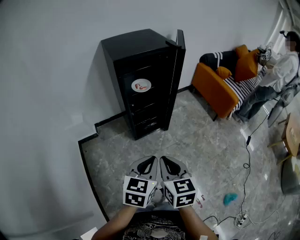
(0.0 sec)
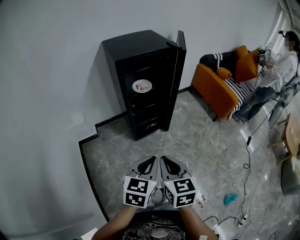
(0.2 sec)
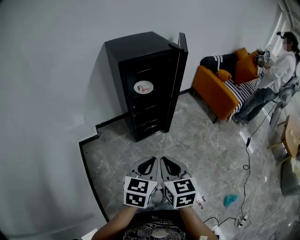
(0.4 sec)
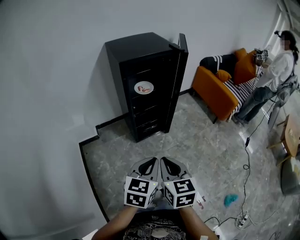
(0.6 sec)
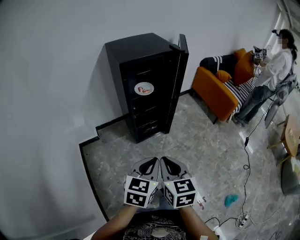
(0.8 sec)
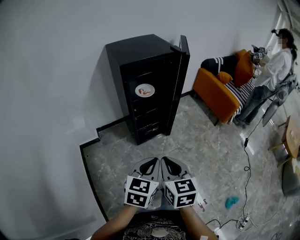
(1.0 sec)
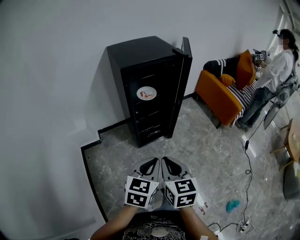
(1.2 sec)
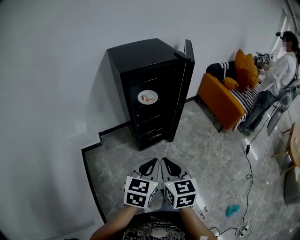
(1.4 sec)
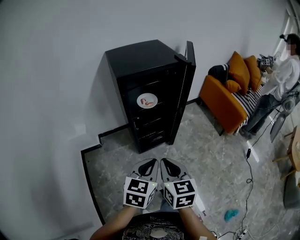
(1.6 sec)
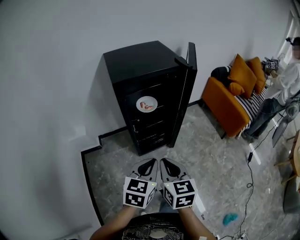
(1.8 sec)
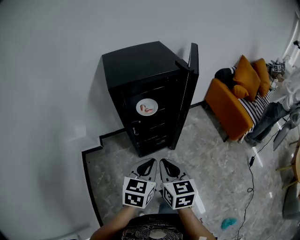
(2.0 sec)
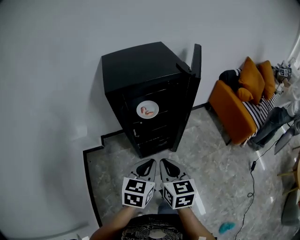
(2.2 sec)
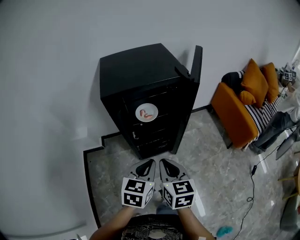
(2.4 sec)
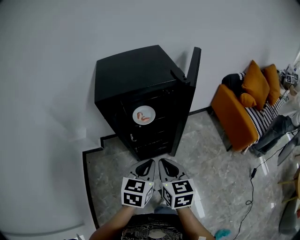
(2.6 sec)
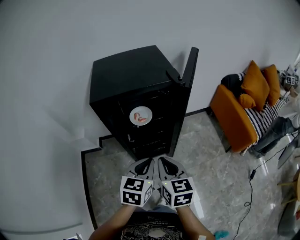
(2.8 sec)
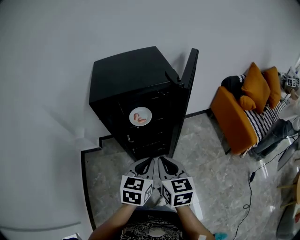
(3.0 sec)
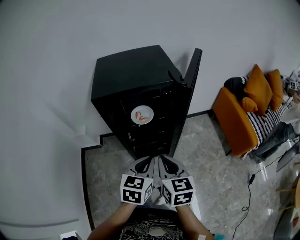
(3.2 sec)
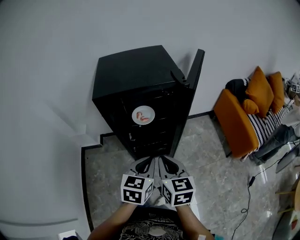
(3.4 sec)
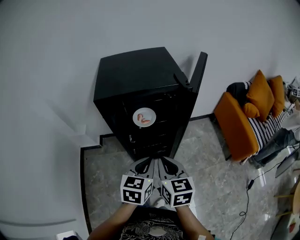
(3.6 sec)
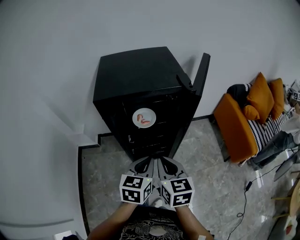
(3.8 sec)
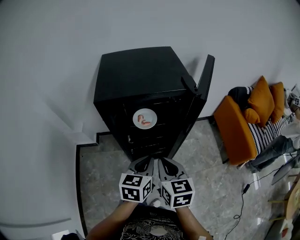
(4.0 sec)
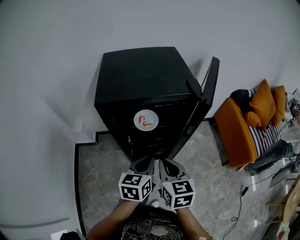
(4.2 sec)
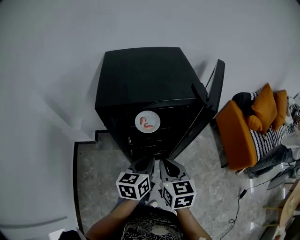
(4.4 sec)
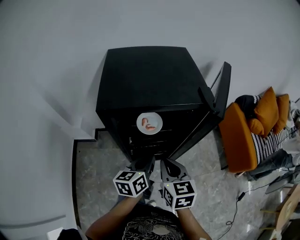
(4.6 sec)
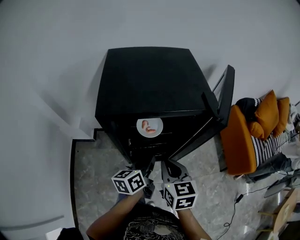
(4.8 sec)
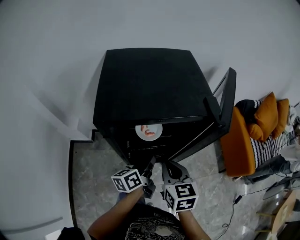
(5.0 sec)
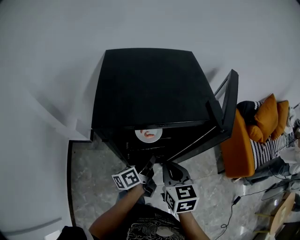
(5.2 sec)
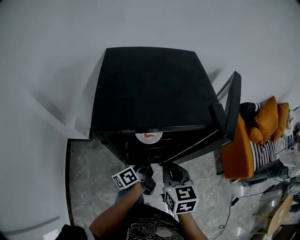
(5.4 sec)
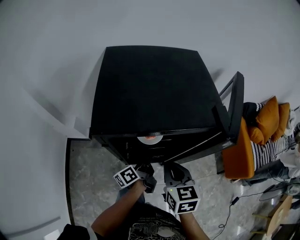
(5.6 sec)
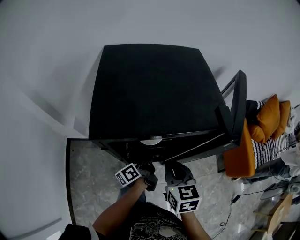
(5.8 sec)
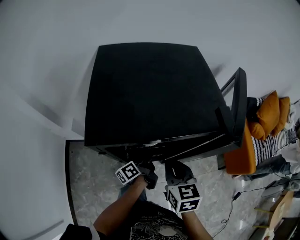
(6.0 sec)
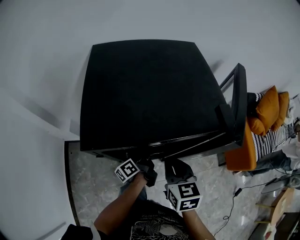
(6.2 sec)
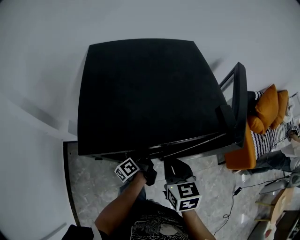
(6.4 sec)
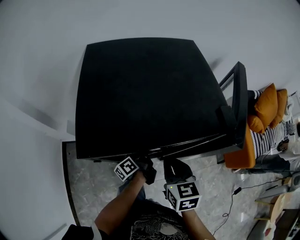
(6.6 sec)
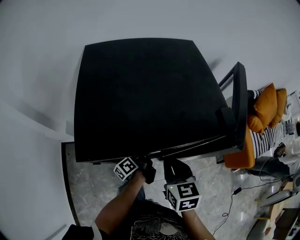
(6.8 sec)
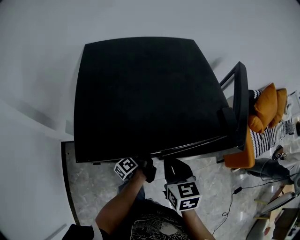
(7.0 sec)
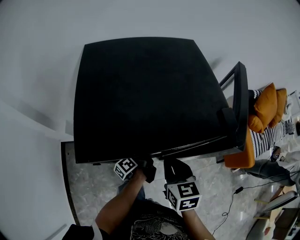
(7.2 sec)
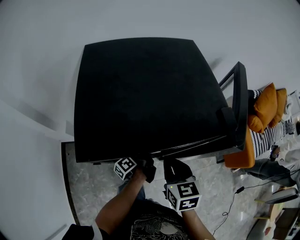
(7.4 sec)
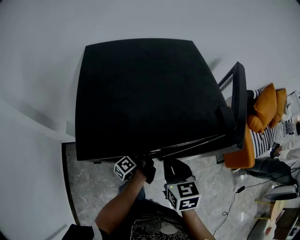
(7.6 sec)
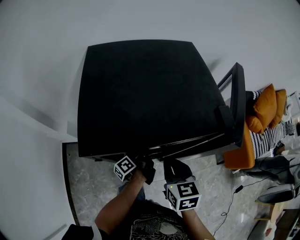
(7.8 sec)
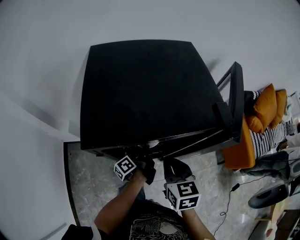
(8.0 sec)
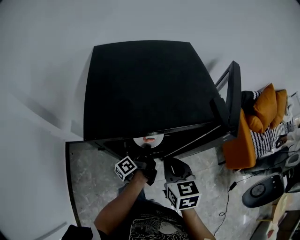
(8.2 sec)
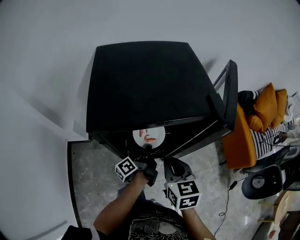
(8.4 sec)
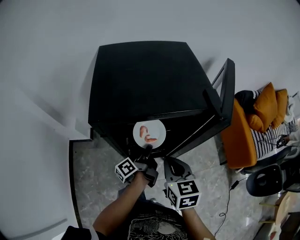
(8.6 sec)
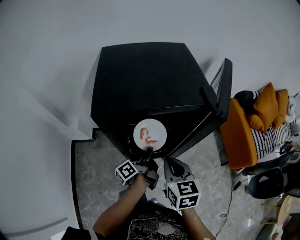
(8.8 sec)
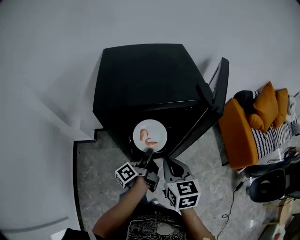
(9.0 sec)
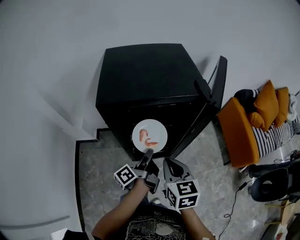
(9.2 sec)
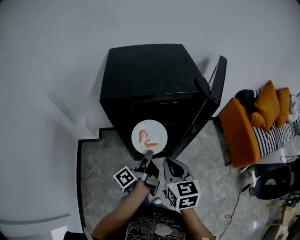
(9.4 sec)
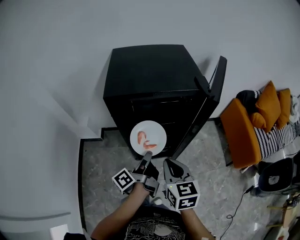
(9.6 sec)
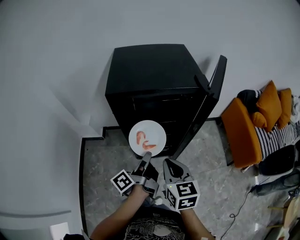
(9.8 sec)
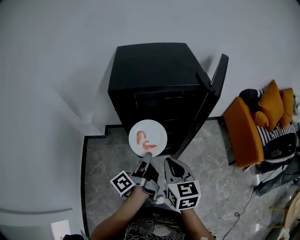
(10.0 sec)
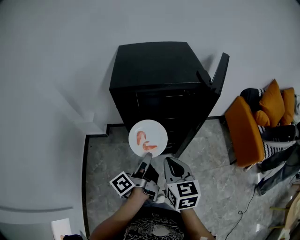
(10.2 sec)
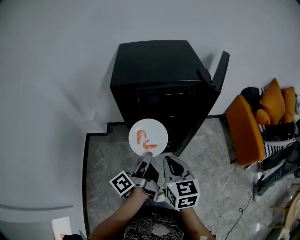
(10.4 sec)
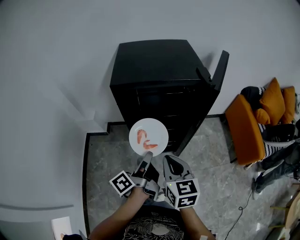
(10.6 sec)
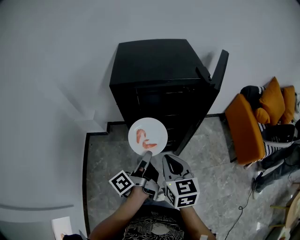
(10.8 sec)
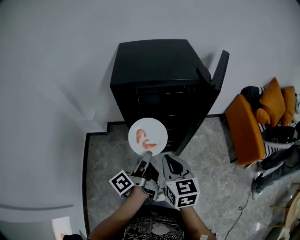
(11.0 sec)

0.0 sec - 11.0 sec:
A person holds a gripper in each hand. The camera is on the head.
0.0 sec - 1.6 sec: Both grippers move forward, roughly 10 cm.
1.6 sec - 3.2 sec: The grippers both shift forward and to the right by roughly 20 cm.
3.2 sec - 4.8 sec: The left gripper shifts approximately 15 cm forward and downward, and rolls counterclockwise, seen from behind, by some 40 degrees. The right gripper is displaced forward by some 15 cm.
4.8 sec - 6.2 sec: The right gripper travels forward by approximately 10 cm; the left gripper heads downward and forward, covering approximately 20 cm, and rotates some 40 degrees.
6.2 sec - 7.8 sec: The grippers move only a little.
7.8 sec - 9.4 sec: The right gripper is displaced backward by approximately 15 cm, while the left gripper heads backward and upward, covering approximately 25 cm.
9.4 sec - 11.0 sec: The left gripper travels backward by about 10 cm, while the right gripper goes some 5 cm backward.

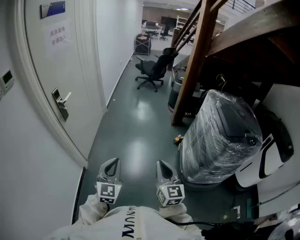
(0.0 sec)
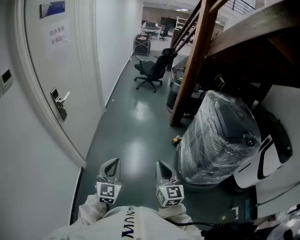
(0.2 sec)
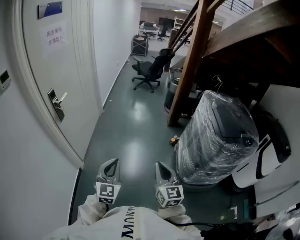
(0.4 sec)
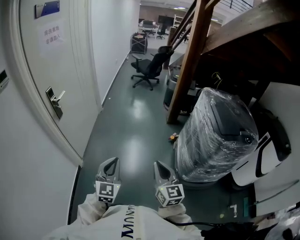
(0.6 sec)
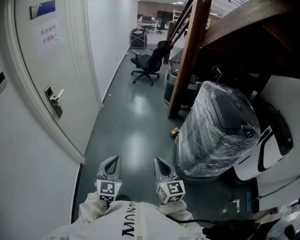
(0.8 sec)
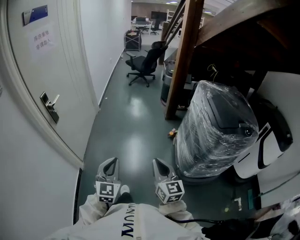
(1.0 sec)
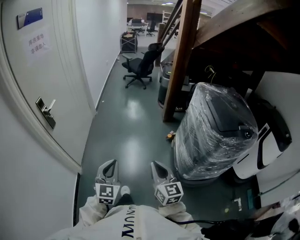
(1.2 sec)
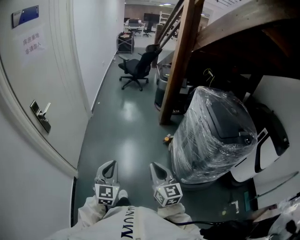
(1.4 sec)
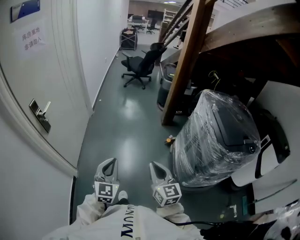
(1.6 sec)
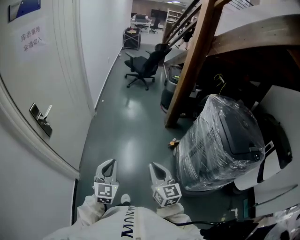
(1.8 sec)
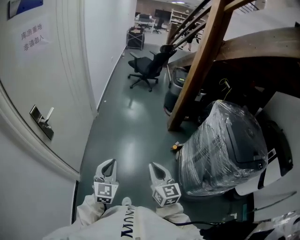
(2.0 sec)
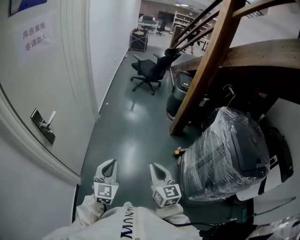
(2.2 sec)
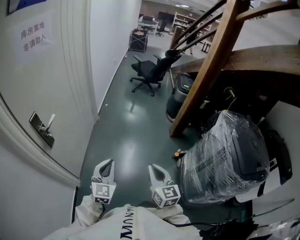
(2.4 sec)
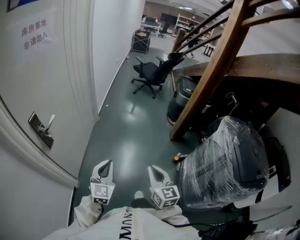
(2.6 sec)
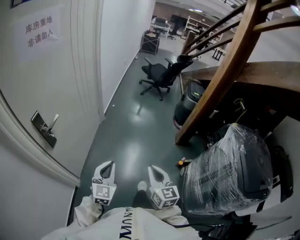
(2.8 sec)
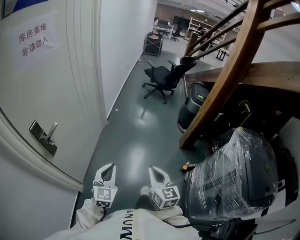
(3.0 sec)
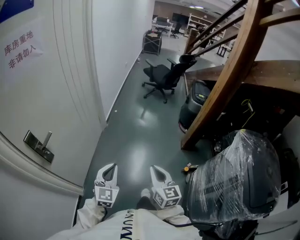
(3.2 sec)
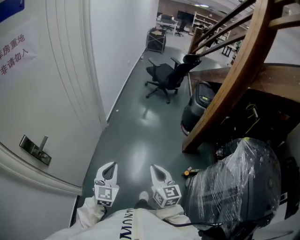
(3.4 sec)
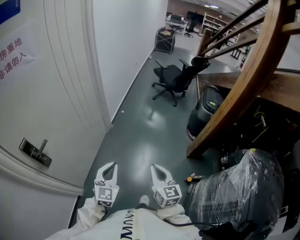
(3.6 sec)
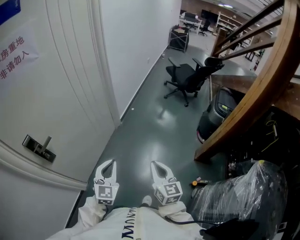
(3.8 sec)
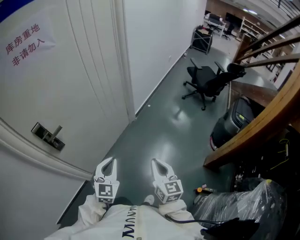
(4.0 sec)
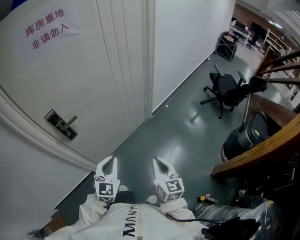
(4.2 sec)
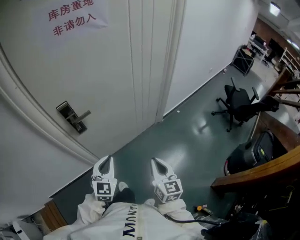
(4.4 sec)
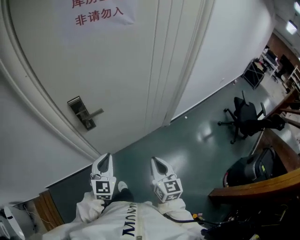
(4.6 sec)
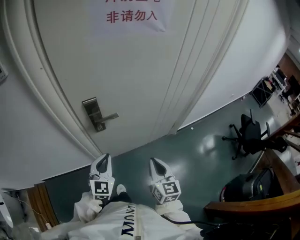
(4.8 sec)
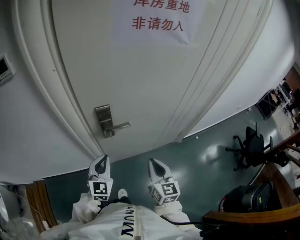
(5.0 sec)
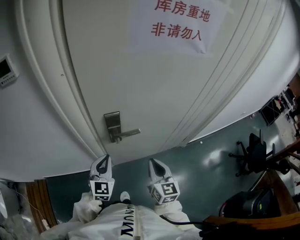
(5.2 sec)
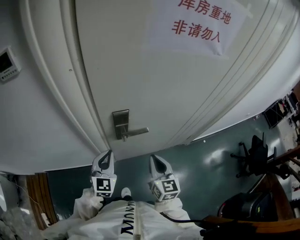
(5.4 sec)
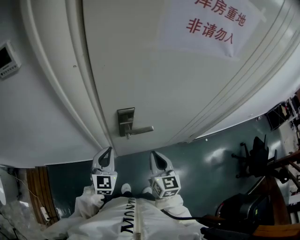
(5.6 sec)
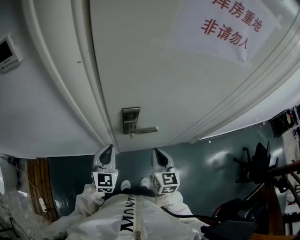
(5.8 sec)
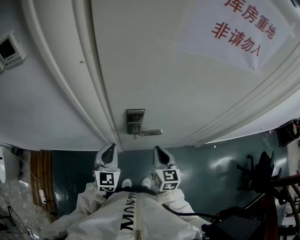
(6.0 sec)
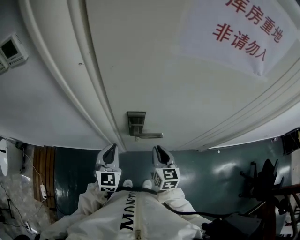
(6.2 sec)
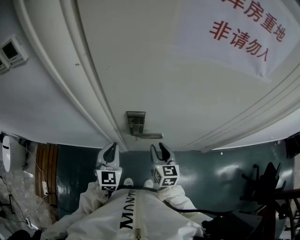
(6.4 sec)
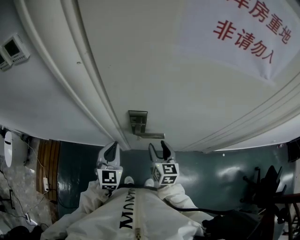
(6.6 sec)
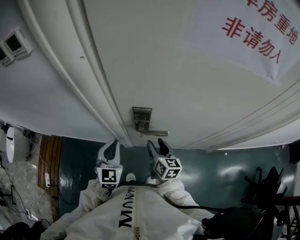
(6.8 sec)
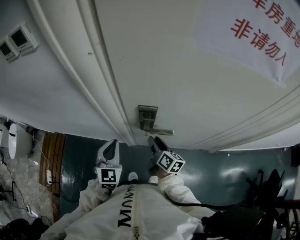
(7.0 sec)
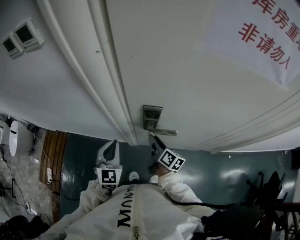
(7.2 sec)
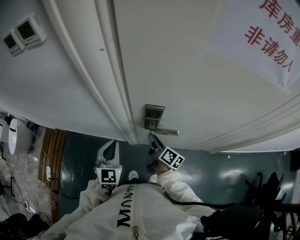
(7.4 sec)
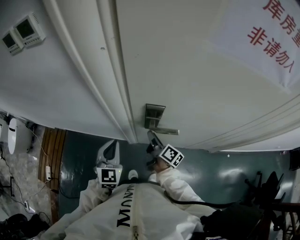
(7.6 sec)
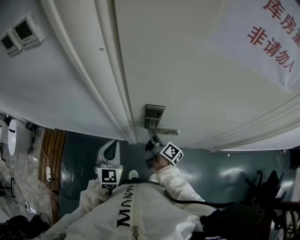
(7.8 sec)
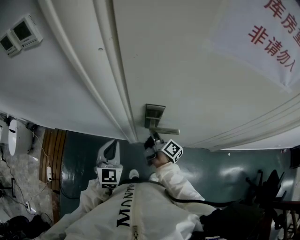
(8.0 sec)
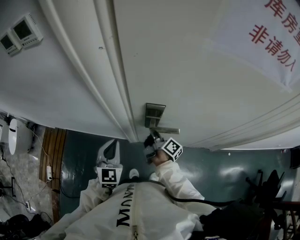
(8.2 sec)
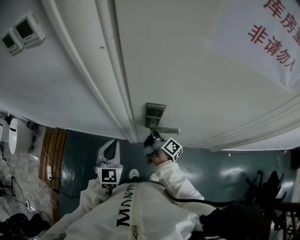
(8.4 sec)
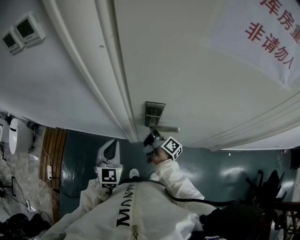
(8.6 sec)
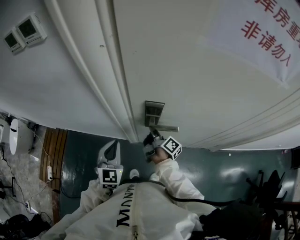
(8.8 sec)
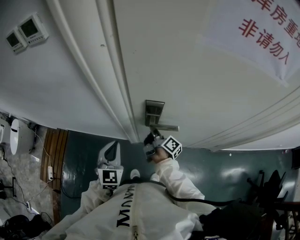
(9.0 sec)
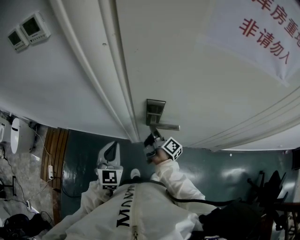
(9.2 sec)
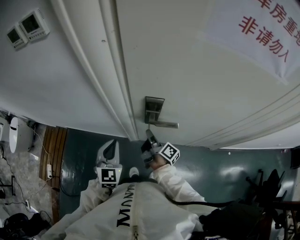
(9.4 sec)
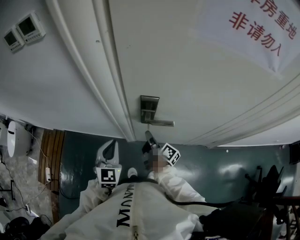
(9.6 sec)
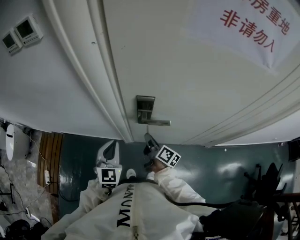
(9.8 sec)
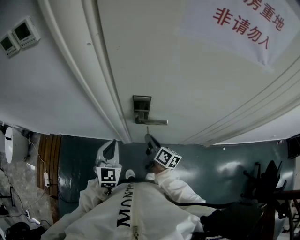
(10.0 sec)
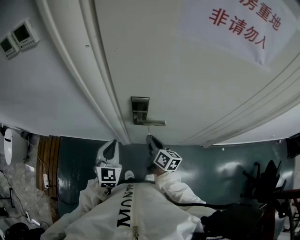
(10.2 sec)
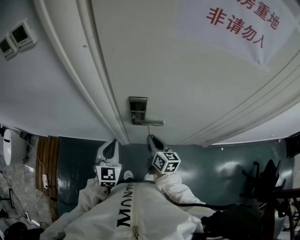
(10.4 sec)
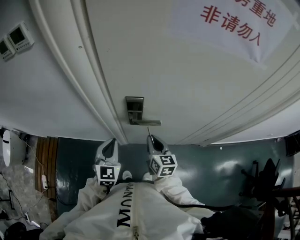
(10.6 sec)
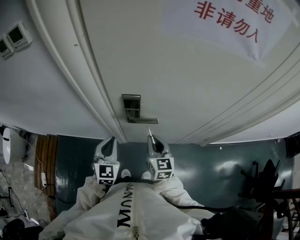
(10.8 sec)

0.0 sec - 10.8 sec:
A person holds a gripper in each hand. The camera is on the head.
0.0 sec - 1.6 sec: The two grippers go roughly 10 cm forward.
1.6 sec - 3.0 sec: The left gripper heads forward and to the left, covering about 25 cm. The right gripper heads forward, covering some 30 cm.
3.0 sec - 4.6 sec: The left gripper ends up approximately 20 cm from where it was, and changes its angle by approximately 50 degrees. The right gripper changes place by about 30 cm, and rotates about 50 degrees.
4.6 sec - 6.2 sec: The left gripper changes place by some 25 cm, and rotates some 30 degrees. Meanwhile the right gripper moves about 30 cm, and swivels about 30 degrees.
6.2 sec - 7.8 sec: The right gripper goes some 10 cm forward, to the left and downward, twists about 60 degrees clockwise, seen from behind, and opens, then closes once more; the left gripper goes some 5 cm to the left.
7.8 sec - 9.2 sec: The right gripper closes.
9.2 sec - 10.8 sec: The right gripper heads backward, upward and to the right, covering roughly 15 cm, and twists about 80 degrees counterclockwise, seen from behind, while the left gripper is displaced to the right by about 5 cm.

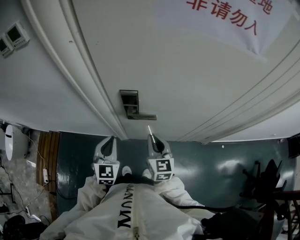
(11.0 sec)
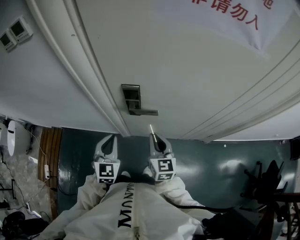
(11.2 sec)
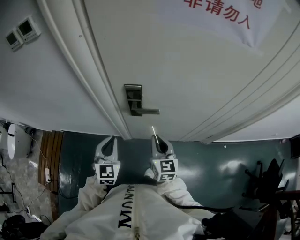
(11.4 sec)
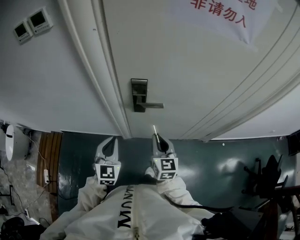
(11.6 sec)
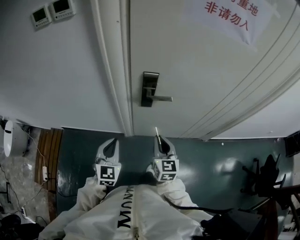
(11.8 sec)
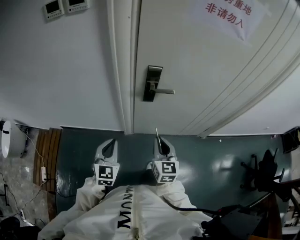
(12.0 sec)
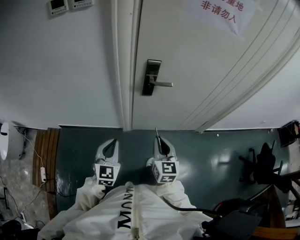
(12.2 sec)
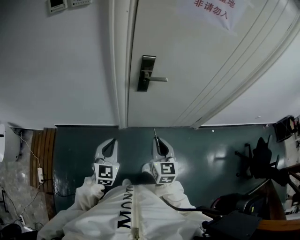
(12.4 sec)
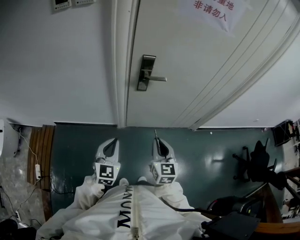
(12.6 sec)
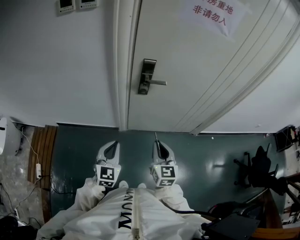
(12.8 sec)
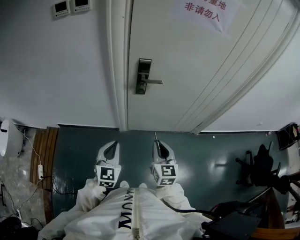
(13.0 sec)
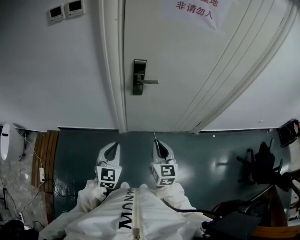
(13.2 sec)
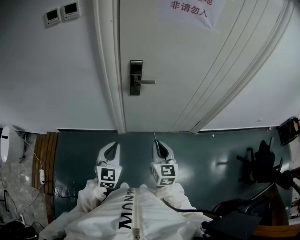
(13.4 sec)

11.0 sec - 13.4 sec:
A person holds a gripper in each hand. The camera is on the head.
11.0 sec - 12.2 sec: The left gripper travels backward and to the left by about 20 cm; the right gripper travels backward by roughly 20 cm.
12.2 sec - 13.4 sec: Both grippers travel together to the right and backward, some 10 cm.
